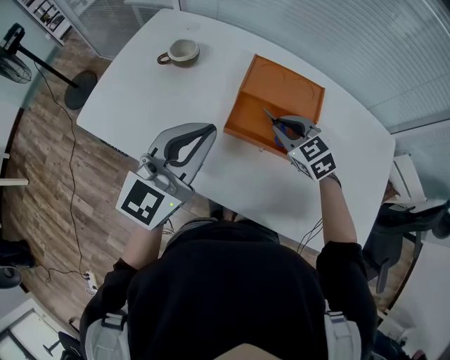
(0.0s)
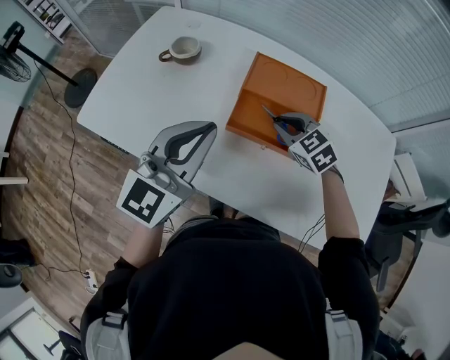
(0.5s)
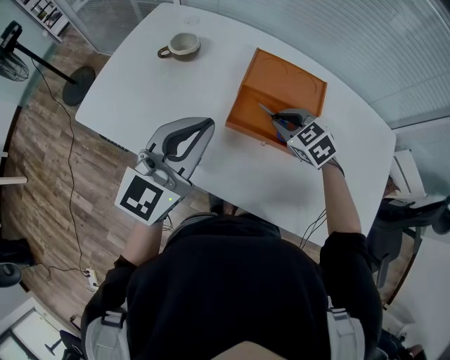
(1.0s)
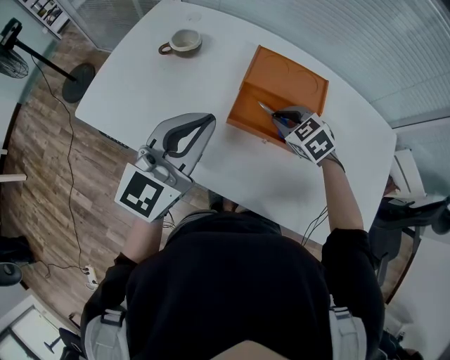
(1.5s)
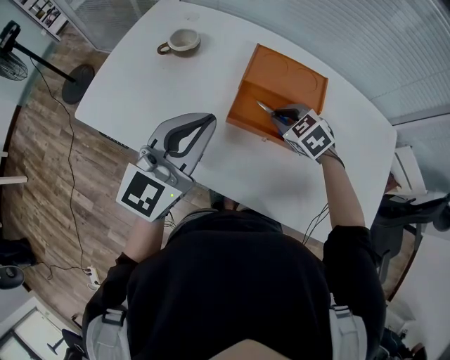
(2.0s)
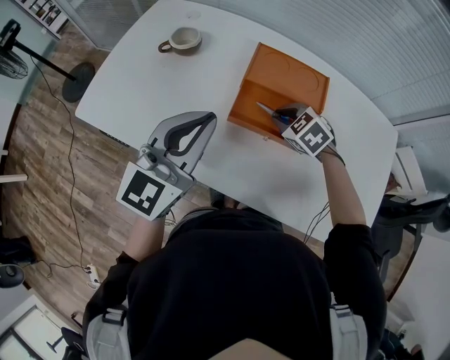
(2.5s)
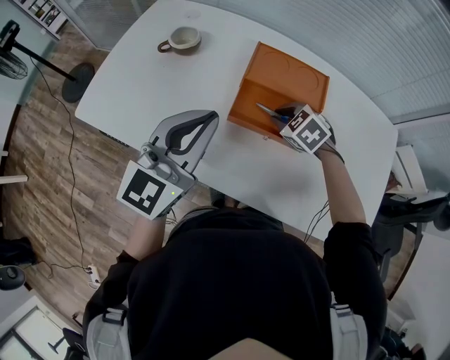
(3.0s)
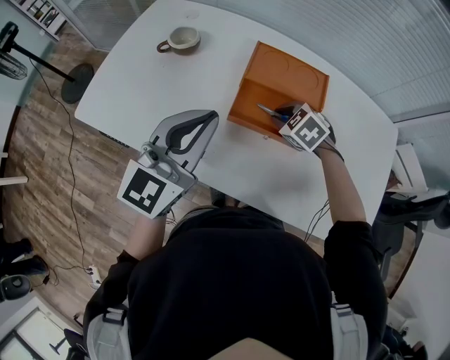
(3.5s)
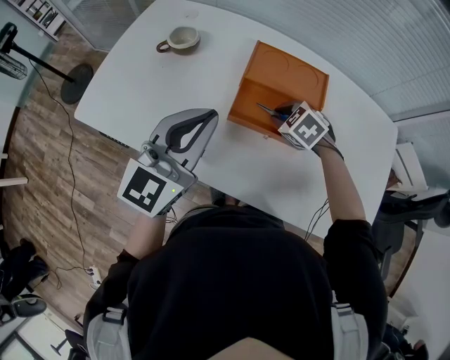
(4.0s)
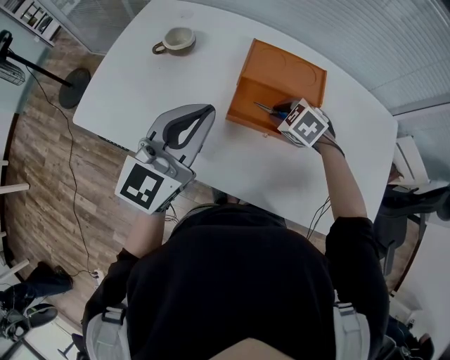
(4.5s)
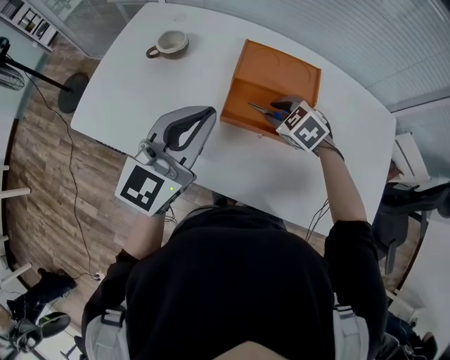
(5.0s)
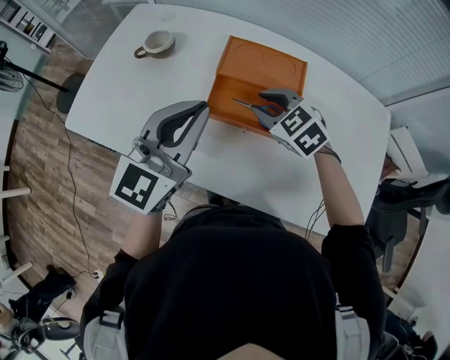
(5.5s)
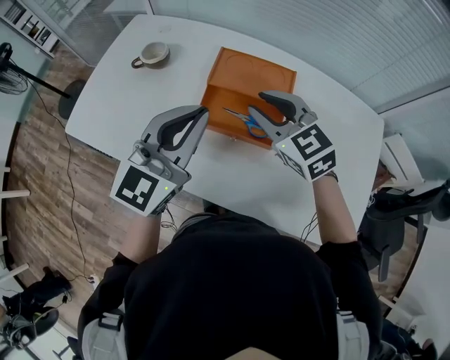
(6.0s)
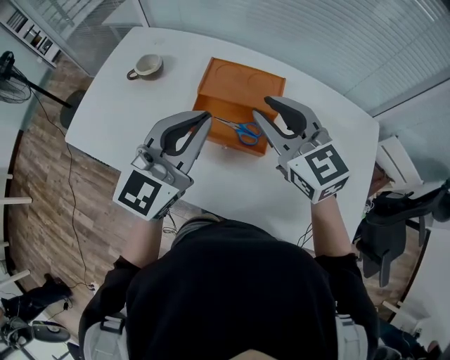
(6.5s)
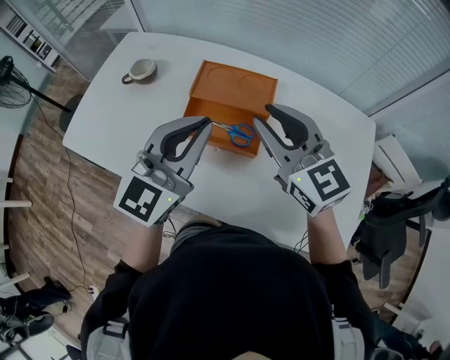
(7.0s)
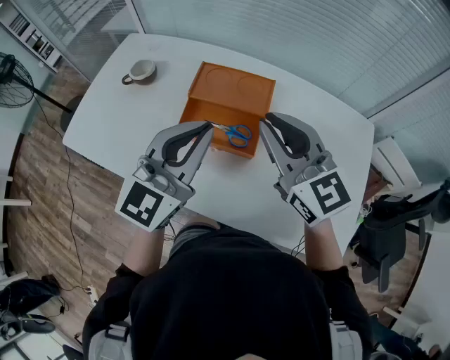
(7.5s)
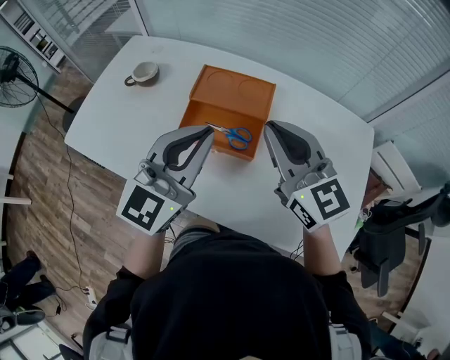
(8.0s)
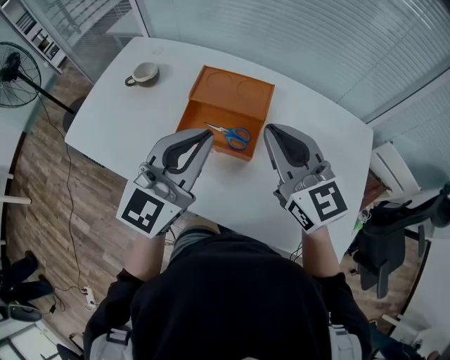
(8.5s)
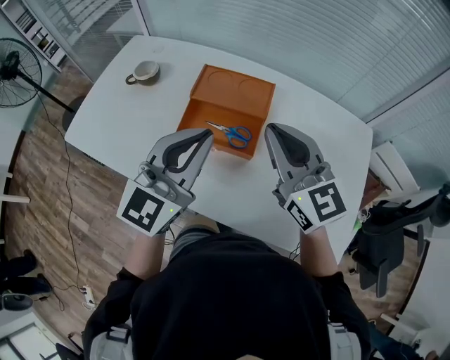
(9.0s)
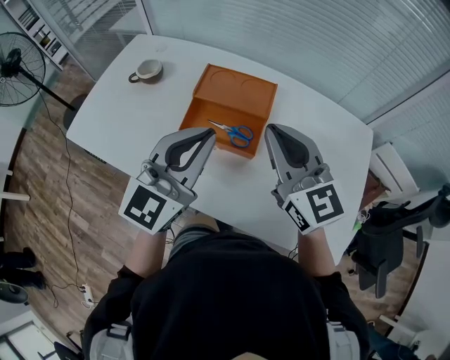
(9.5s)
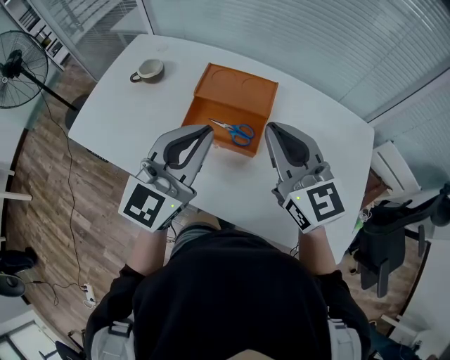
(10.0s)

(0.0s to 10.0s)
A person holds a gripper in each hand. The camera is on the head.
0.0s - 2.0s: The grippers stay close to where they were, moving slightly.
2.0s - 4.0s: The grippers stay close to where they were, moving slightly.
4.0s - 6.0s: The left gripper moves to the right, about 10 cm; the right gripper moves upward, about 20 cm, and tips its fingers upward by approximately 40 degrees.
6.0s - 8.0s: The left gripper is displaced to the right by some 5 cm; the right gripper is displaced upward, to the right and backward by approximately 15 cm, swivels approximately 30 degrees, and closes its fingers.
8.0s - 10.0s: The grippers stay close to where they were, moving slightly.

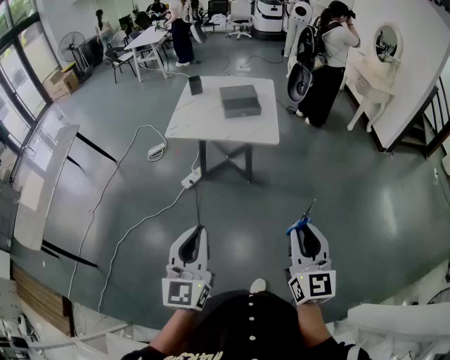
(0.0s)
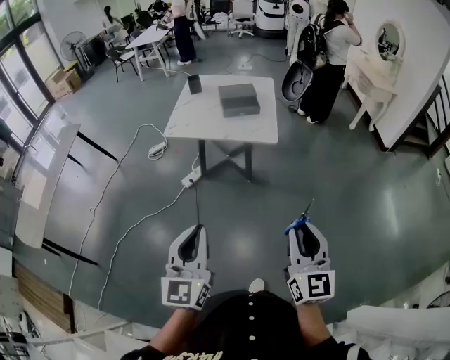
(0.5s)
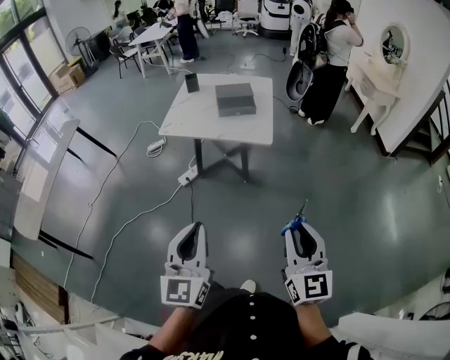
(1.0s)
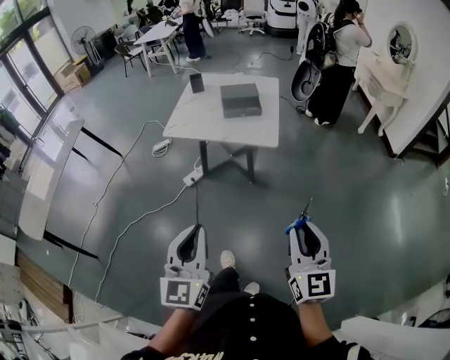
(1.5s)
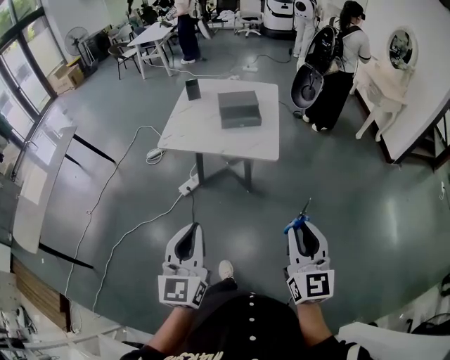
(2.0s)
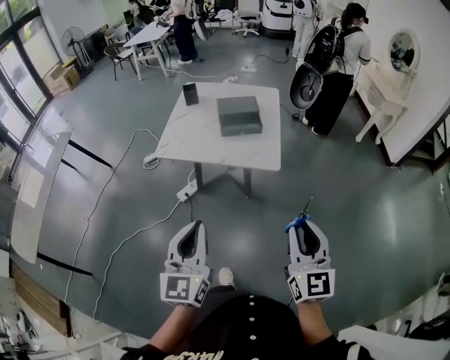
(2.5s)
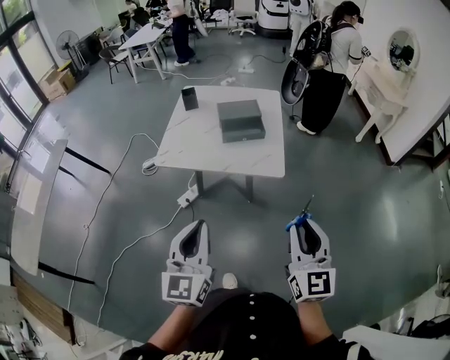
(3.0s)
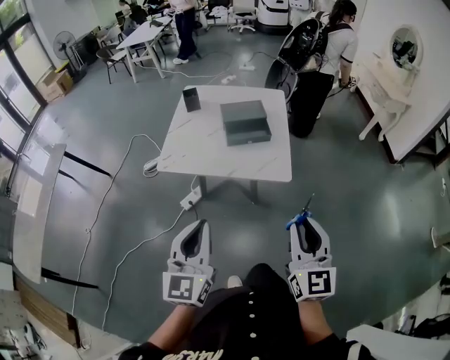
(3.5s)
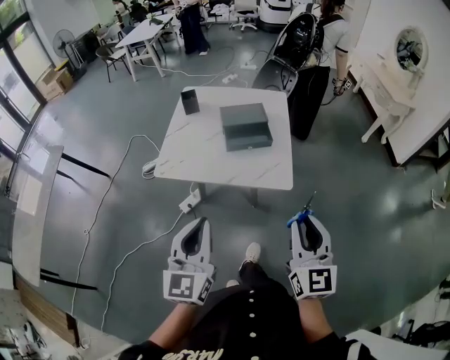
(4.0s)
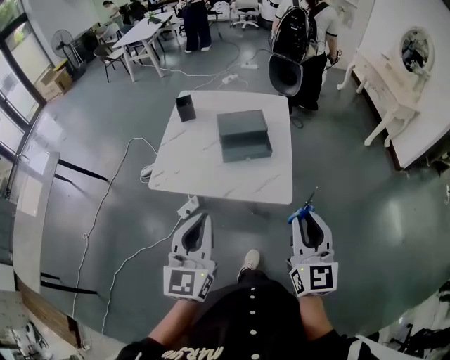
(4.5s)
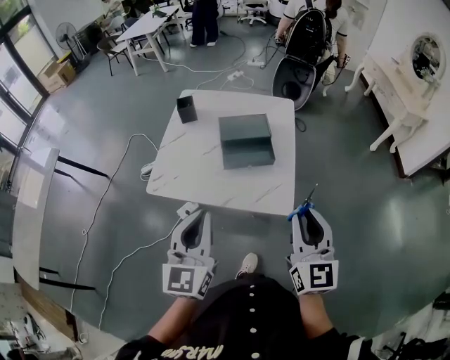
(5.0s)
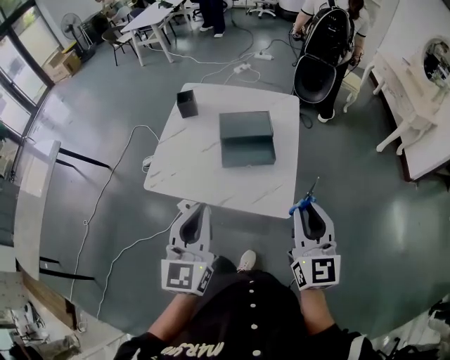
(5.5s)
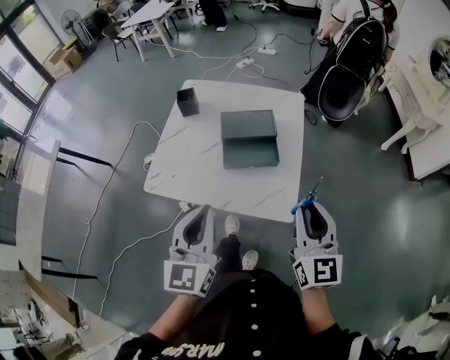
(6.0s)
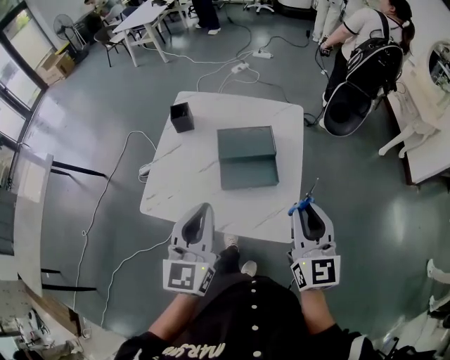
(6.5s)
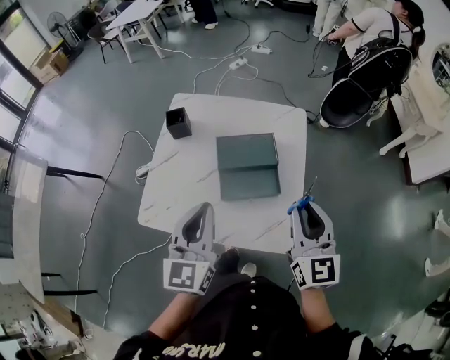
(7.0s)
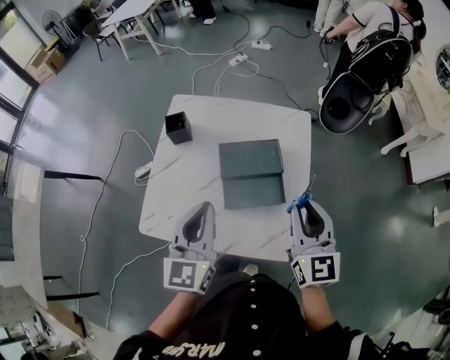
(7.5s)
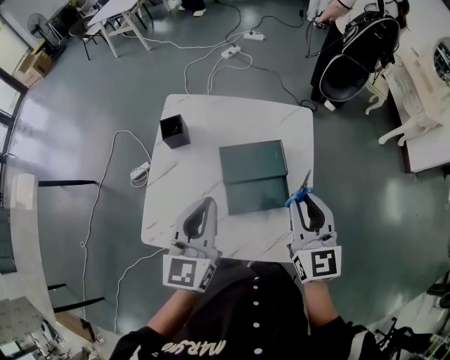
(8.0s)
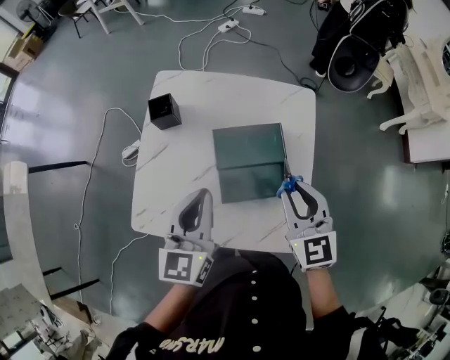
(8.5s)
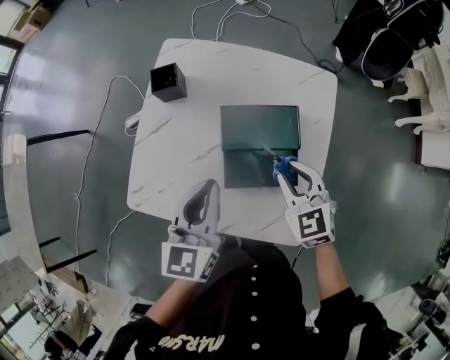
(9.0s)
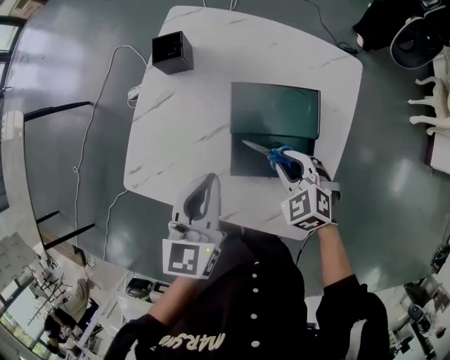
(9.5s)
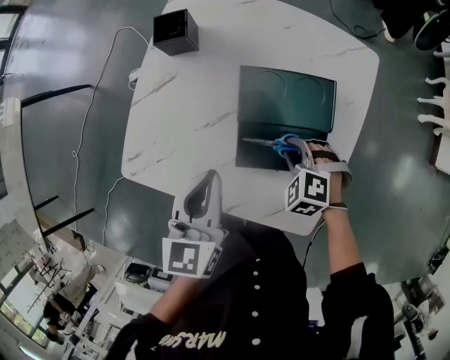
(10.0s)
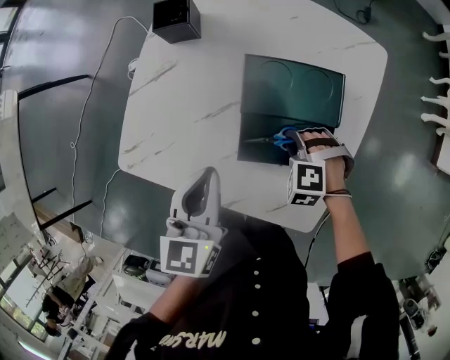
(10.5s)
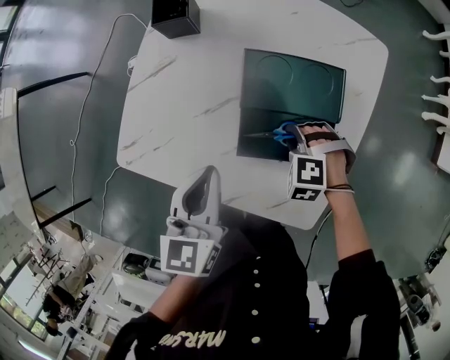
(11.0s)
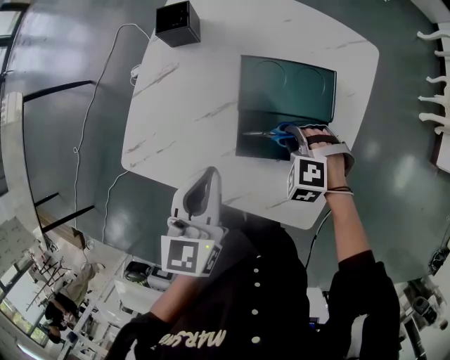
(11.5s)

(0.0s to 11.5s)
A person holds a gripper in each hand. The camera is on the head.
0.0s - 2.0s: The grippers both shift forward by some 15 cm.
2.0s - 4.0s: The two grippers go about 25 cm forward.
4.0s - 6.0s: Both grippers move forward, roughly 25 cm.
6.0s - 7.5s: The grippers both shift forward by approximately 20 cm.
7.5s - 9.5s: The right gripper heads downward, covering approximately 25 cm, and angles its fingers downward, by roughly 50 degrees. Meanwhile the left gripper travels downward and forward by roughly 15 cm.
9.5s - 11.5s: The right gripper heads downward, covering approximately 5 cm, and rotates some 40 degrees.

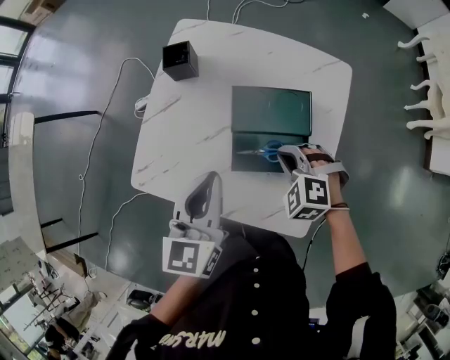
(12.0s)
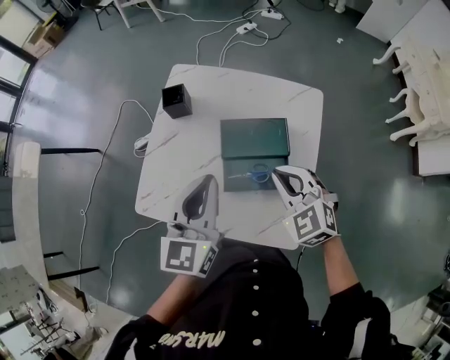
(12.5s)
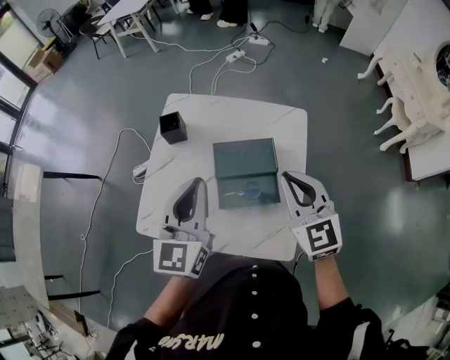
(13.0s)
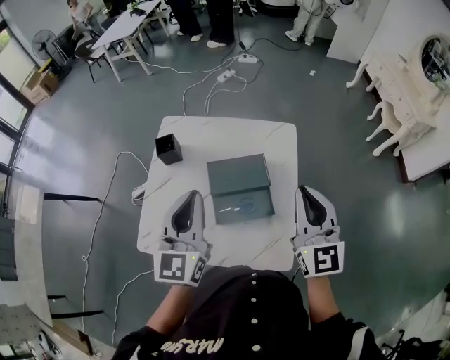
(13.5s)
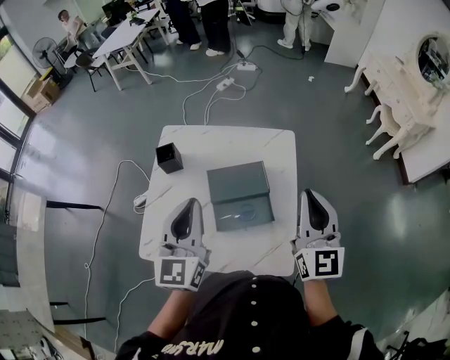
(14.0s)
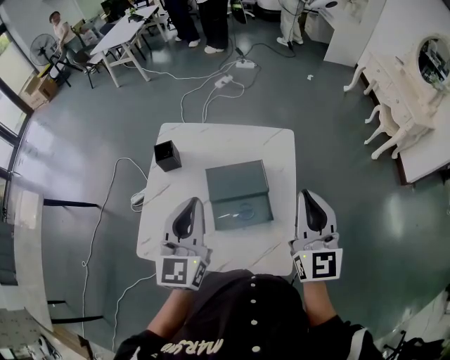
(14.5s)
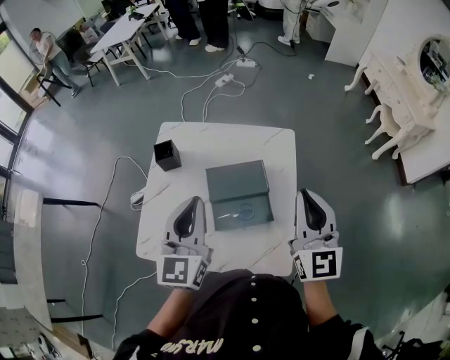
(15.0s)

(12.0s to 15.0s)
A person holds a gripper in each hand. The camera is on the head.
12.0s - 13.5s: The left gripper travels upward by about 15 cm, and turns by about 20 degrees. The right gripper travels upward by some 30 cm, and tilts its fingers roughly 60 degrees upward.
13.5s - 15.0s: There are only small adjustments of the grippers.

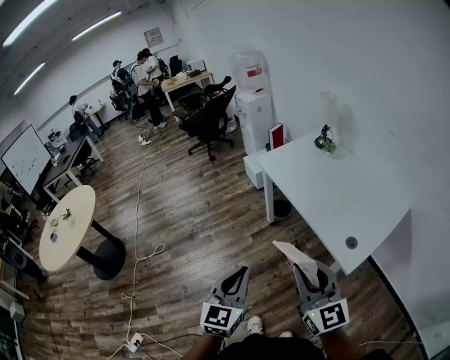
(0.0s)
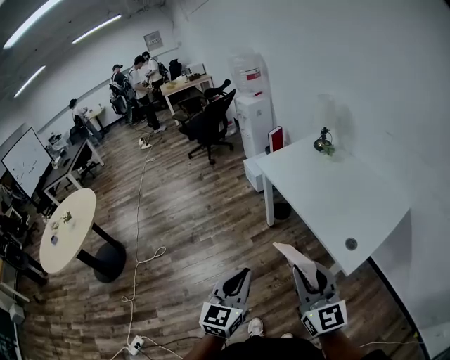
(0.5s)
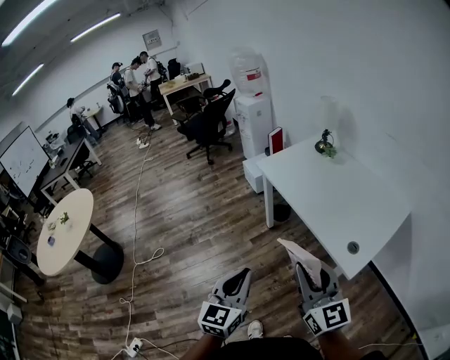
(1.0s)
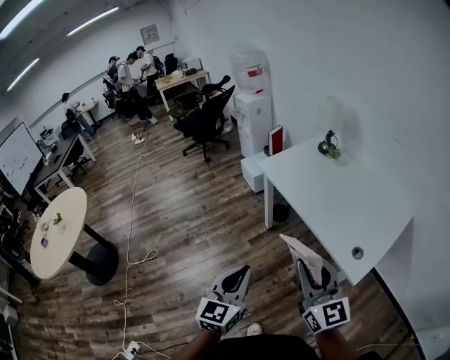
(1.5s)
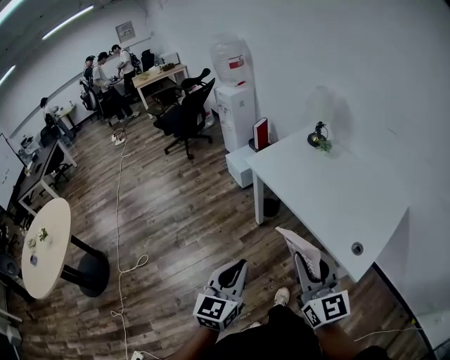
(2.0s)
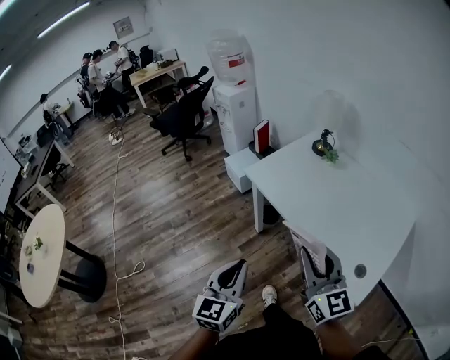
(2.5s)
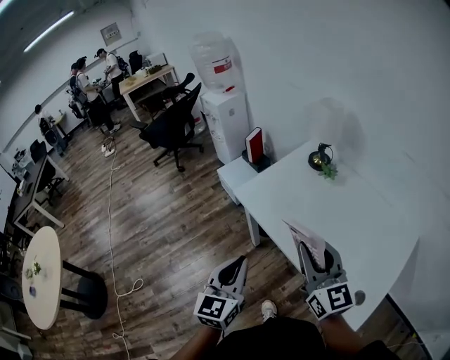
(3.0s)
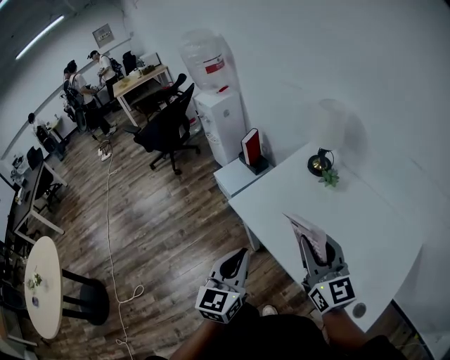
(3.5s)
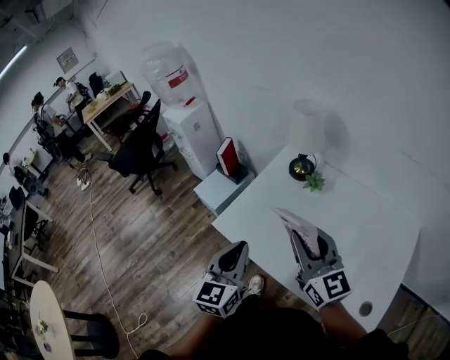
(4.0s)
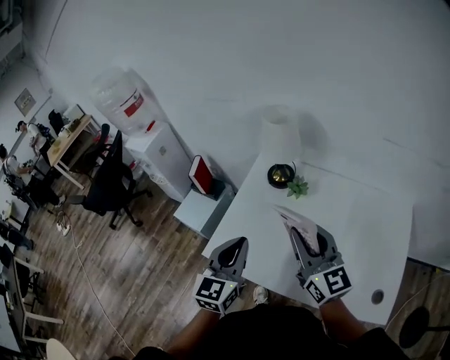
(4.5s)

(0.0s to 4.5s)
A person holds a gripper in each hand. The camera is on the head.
0.0s - 2.0s: The left gripper goes approximately 15 cm forward and to the left. Meanwhile the right gripper moves forward, about 10 cm.
2.0s - 4.5s: The two grippers travel together, roughly 60 cm. The left gripper swivels roughly 30 degrees. The right gripper turns by roughly 20 degrees.
